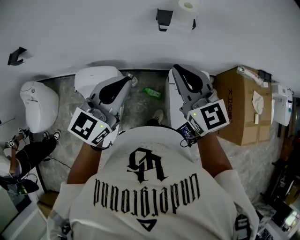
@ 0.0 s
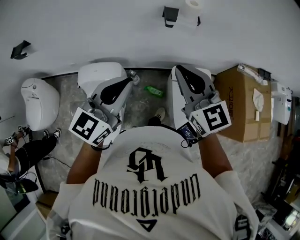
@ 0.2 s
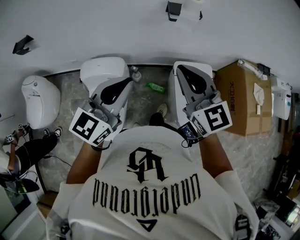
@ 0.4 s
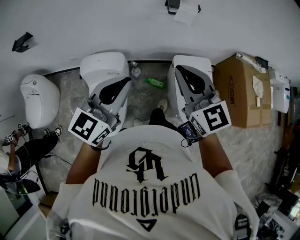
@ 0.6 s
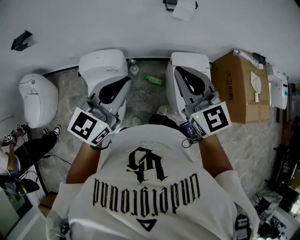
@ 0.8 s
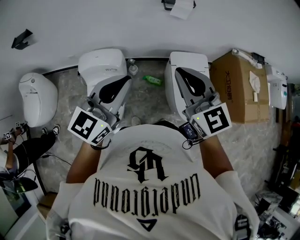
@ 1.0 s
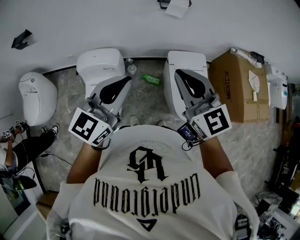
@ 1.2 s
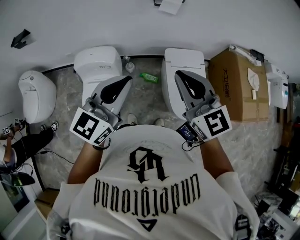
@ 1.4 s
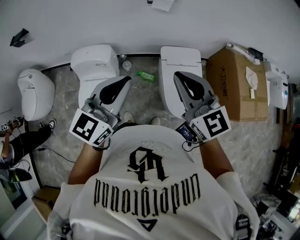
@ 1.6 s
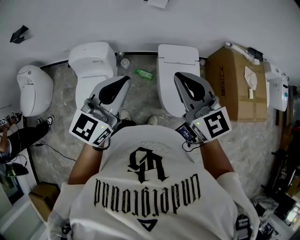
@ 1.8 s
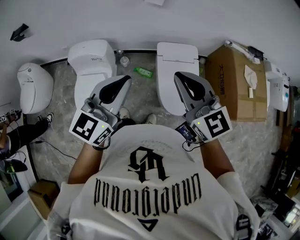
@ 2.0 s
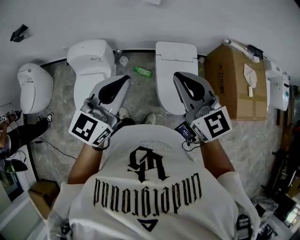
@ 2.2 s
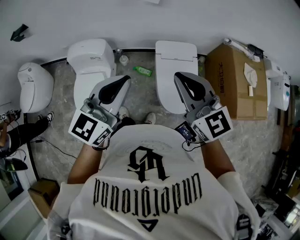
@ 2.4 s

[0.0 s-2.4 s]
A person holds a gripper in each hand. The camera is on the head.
0.0 to 1.2 s: Both grippers move backward, some 20 cm.
1.2 to 2.4 s: The grippers both shift to the right and backward by roughly 15 cm.

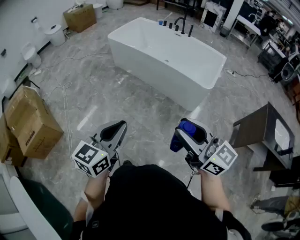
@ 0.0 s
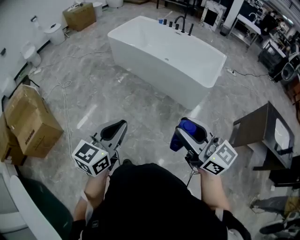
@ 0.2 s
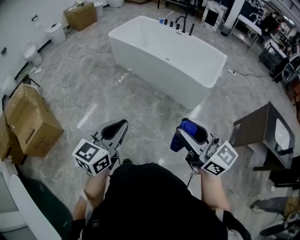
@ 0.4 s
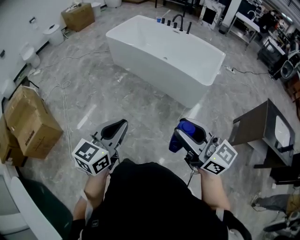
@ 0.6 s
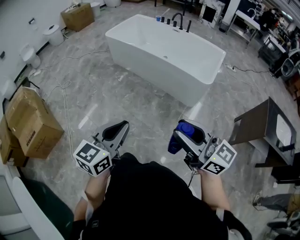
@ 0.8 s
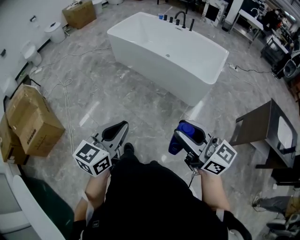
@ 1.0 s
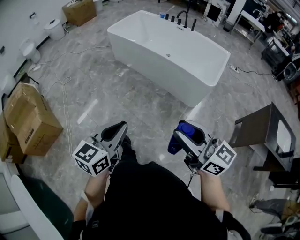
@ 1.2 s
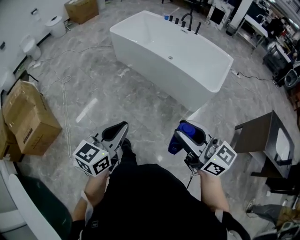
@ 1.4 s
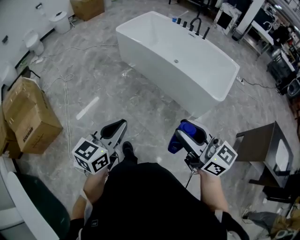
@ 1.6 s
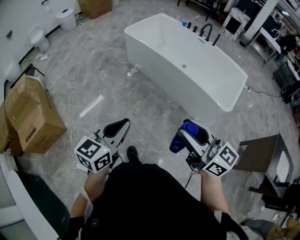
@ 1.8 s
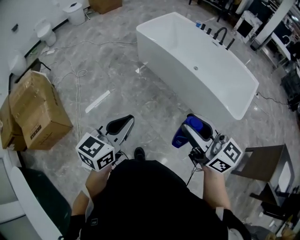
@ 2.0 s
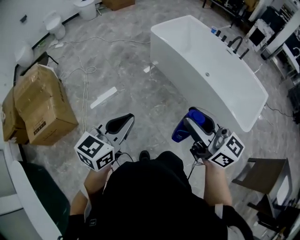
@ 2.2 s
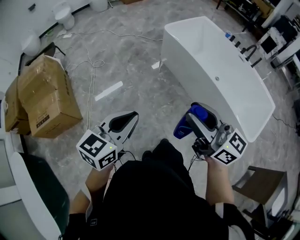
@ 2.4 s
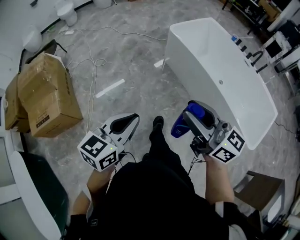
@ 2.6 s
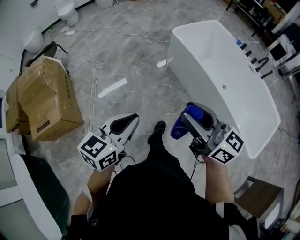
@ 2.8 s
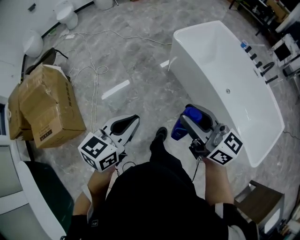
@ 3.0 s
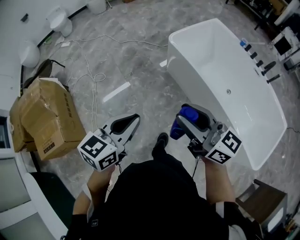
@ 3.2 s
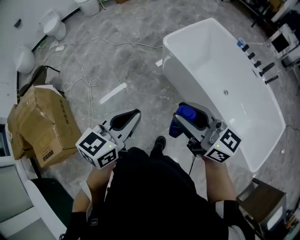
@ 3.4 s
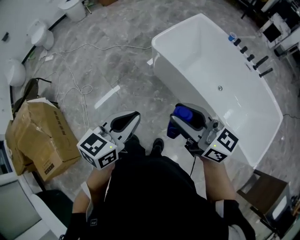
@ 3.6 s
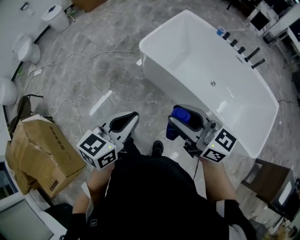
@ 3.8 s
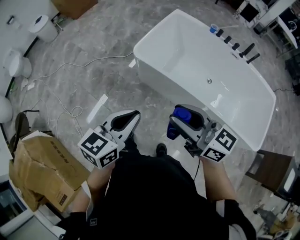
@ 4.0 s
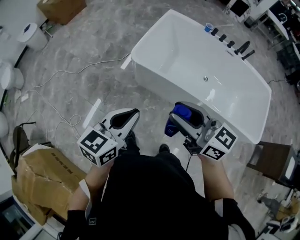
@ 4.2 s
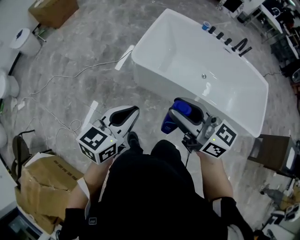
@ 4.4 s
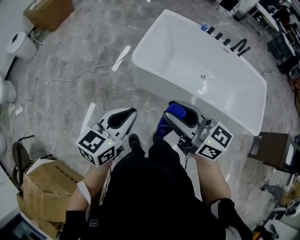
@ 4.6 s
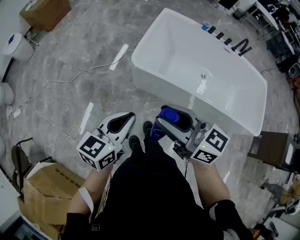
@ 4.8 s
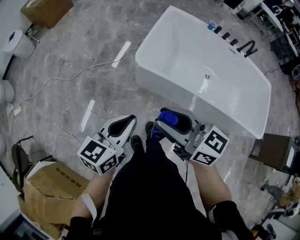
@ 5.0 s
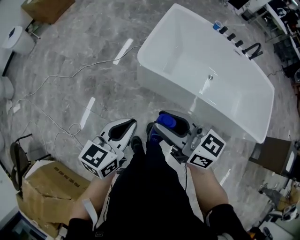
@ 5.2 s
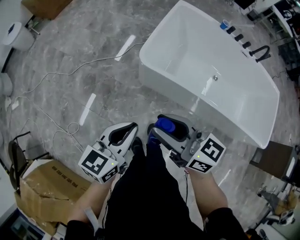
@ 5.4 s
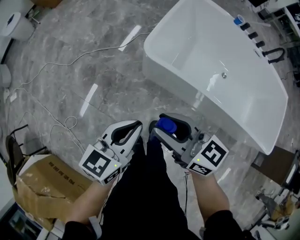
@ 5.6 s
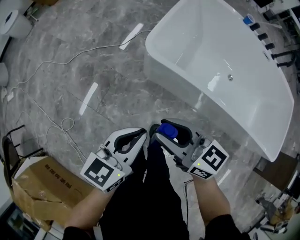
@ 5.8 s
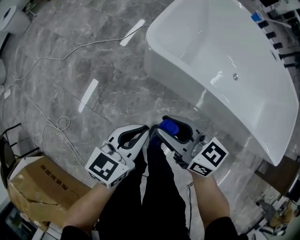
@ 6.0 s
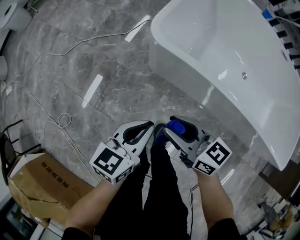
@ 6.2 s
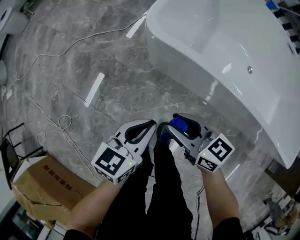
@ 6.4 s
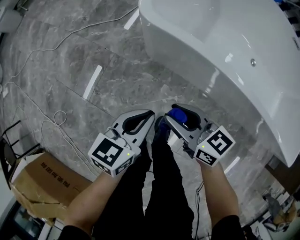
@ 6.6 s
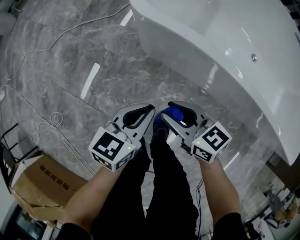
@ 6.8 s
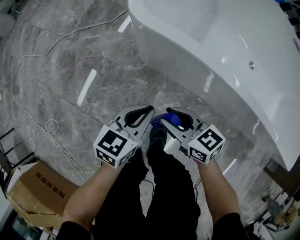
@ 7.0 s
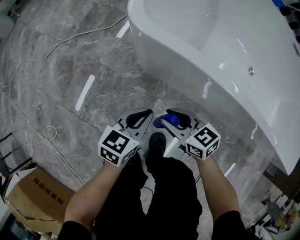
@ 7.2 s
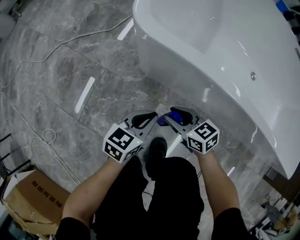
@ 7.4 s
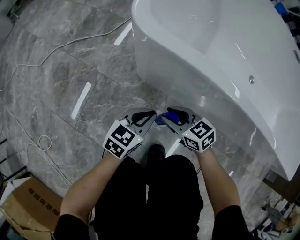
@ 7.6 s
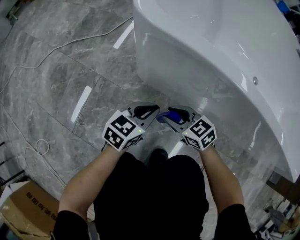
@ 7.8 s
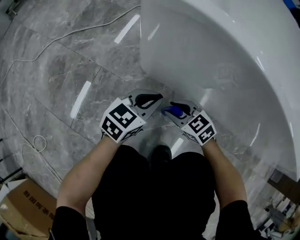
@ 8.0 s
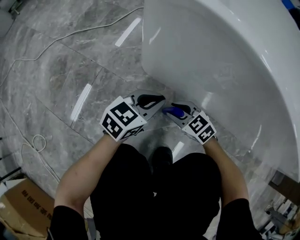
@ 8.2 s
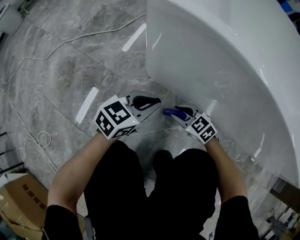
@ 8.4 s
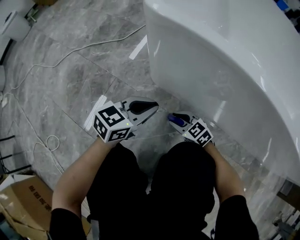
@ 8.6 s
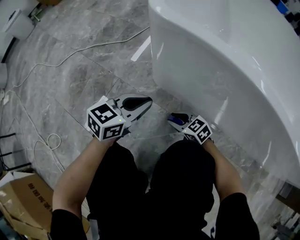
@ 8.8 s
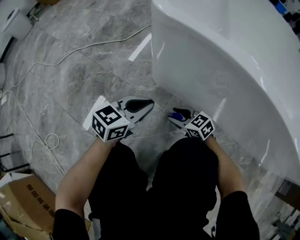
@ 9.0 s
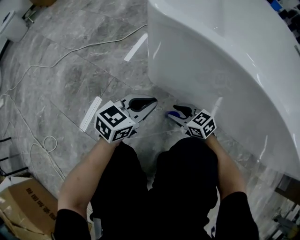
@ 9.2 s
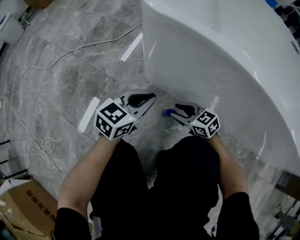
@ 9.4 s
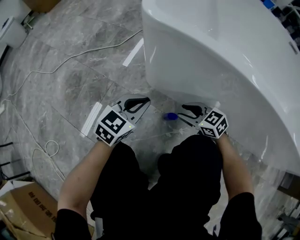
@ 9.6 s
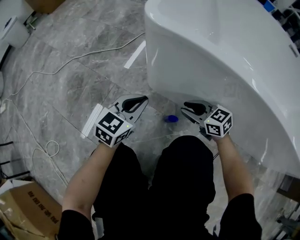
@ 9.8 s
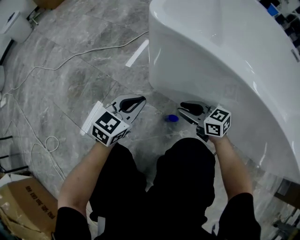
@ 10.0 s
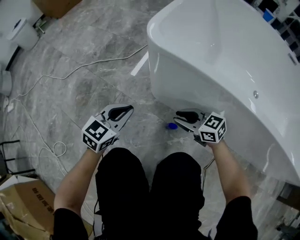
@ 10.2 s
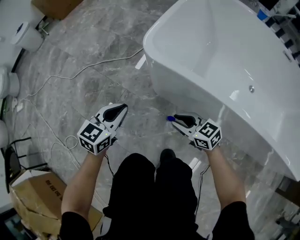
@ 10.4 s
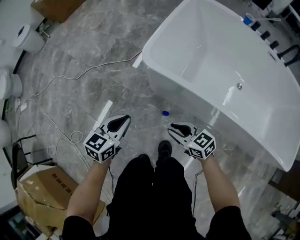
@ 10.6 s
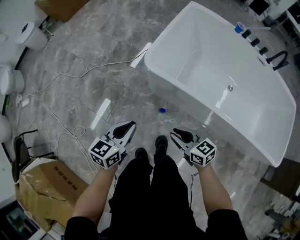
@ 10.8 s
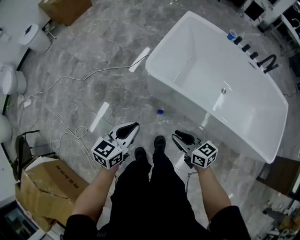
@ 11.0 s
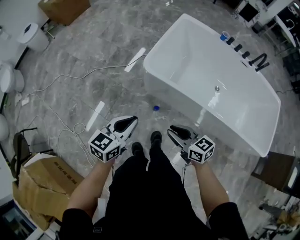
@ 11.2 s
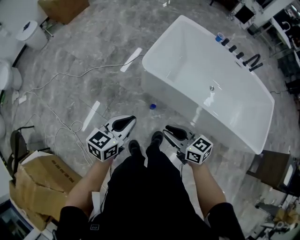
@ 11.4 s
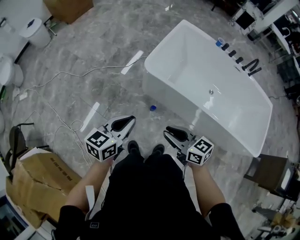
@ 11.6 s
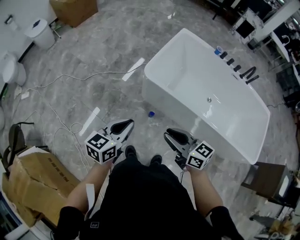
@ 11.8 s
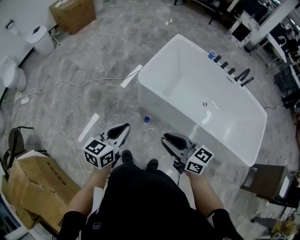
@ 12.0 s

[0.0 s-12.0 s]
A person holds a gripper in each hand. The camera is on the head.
0.0 to 1.6 s: Both grippers move forward, about 15 cm.
1.6 to 3.0 s: Both grippers are carried forward, roughly 50 cm.
3.0 to 4.4 s: The right gripper changes place by some 40 cm, and swivels approximately 30 degrees. The left gripper changes place by some 50 cm, and turns by approximately 30 degrees.
4.4 to 6.0 s: The two grippers go roughly 40 cm downward.
6.0 to 7.6 s: The two grippers go roughly 40 cm downward. The right gripper turns by some 30 degrees.
7.6 to 9.0 s: The right gripper moves downward, roughly 10 cm. Meanwhile the left gripper goes downward and returns, approximately 5 cm each way.
9.0 to 10.4 s: The grippers both shift upward by about 20 cm. The left gripper swivels approximately 20 degrees.
10.4 to 12.0 s: Both grippers move upward and backward, approximately 60 cm.

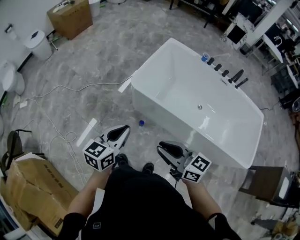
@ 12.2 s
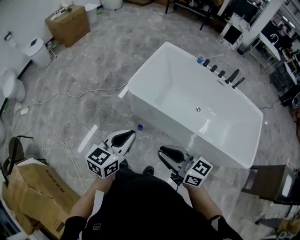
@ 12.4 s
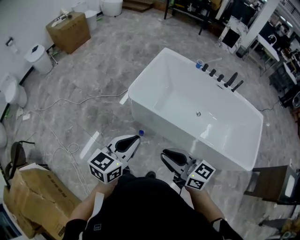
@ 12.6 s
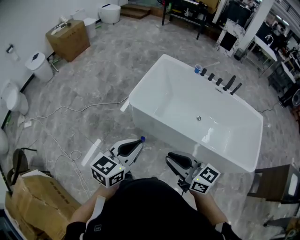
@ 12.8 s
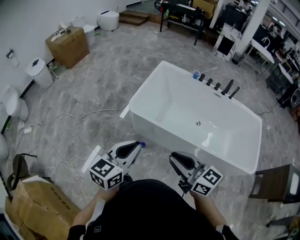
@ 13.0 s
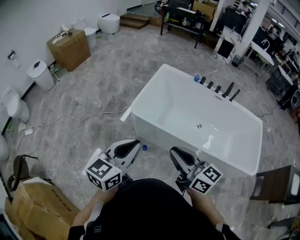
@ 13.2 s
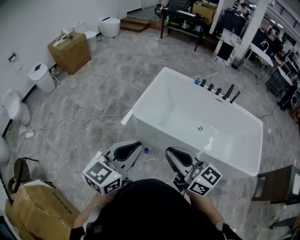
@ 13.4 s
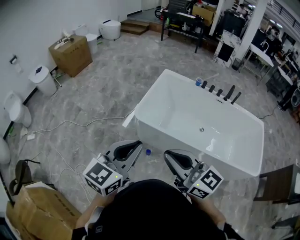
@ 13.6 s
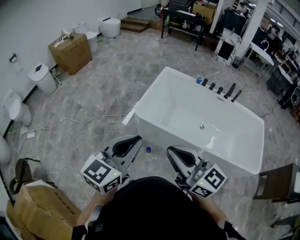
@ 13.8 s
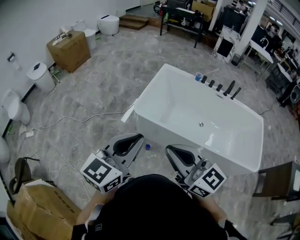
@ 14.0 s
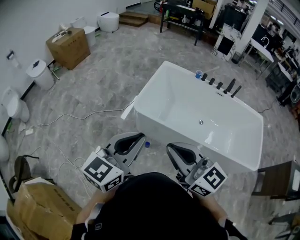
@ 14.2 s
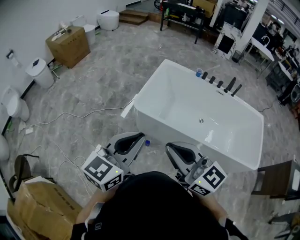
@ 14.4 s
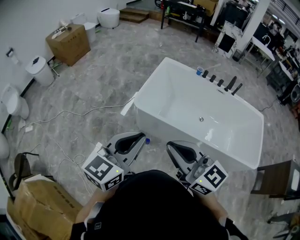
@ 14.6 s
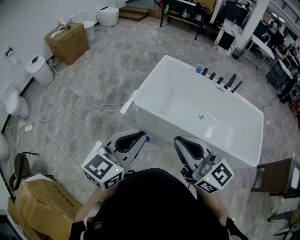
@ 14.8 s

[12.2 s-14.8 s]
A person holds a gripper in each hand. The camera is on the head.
12.2 to 13.4 s: Both grippers move upward, about 15 cm.
13.4 to 14.8 s: The grippers stay close to where they were, moving slightly.

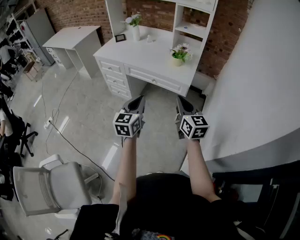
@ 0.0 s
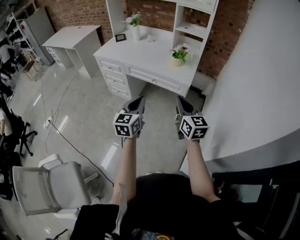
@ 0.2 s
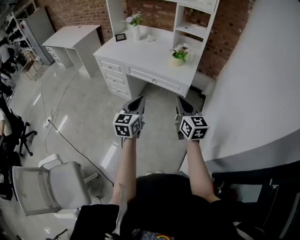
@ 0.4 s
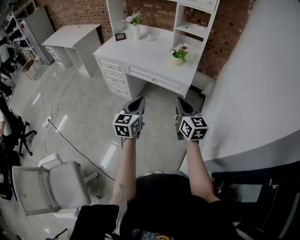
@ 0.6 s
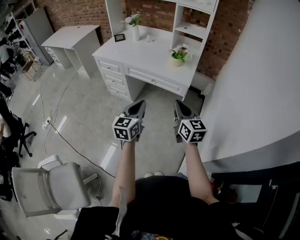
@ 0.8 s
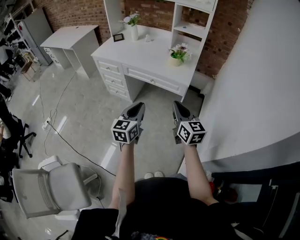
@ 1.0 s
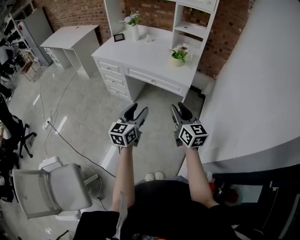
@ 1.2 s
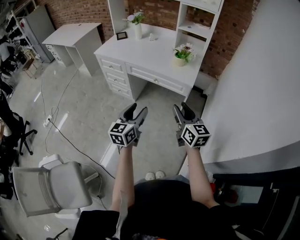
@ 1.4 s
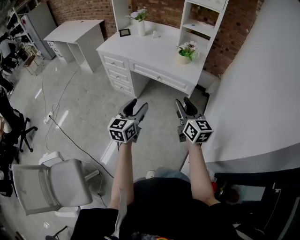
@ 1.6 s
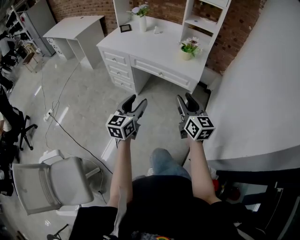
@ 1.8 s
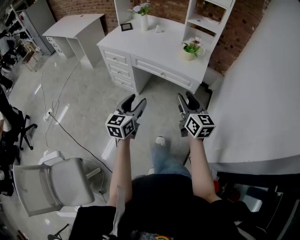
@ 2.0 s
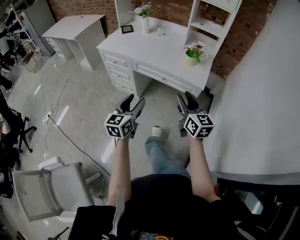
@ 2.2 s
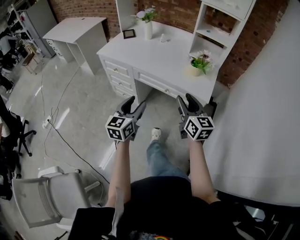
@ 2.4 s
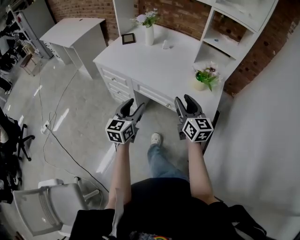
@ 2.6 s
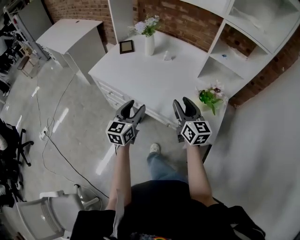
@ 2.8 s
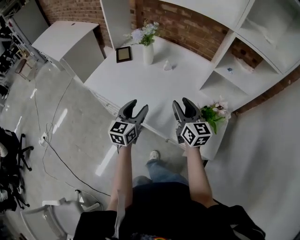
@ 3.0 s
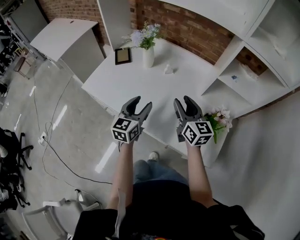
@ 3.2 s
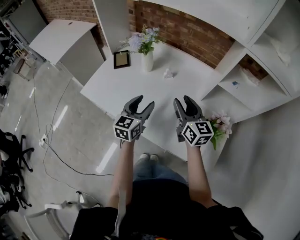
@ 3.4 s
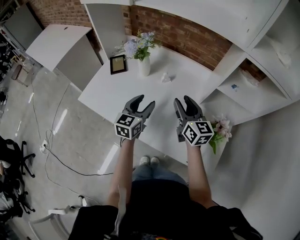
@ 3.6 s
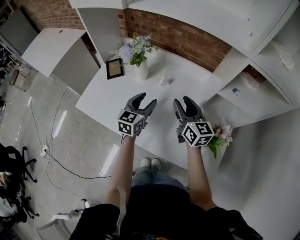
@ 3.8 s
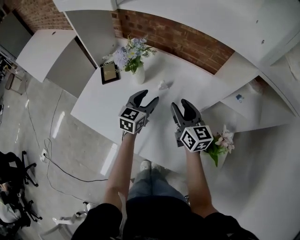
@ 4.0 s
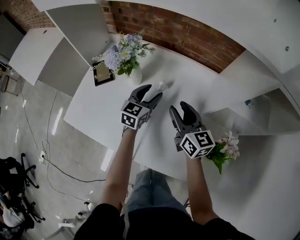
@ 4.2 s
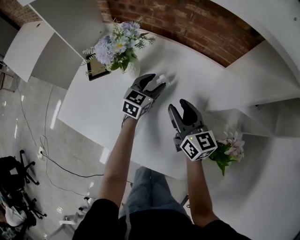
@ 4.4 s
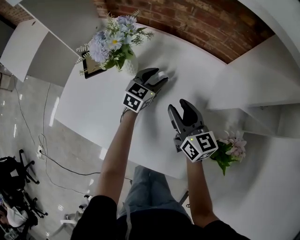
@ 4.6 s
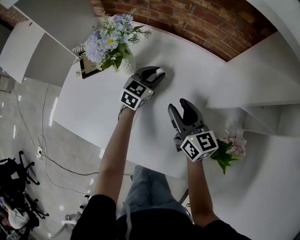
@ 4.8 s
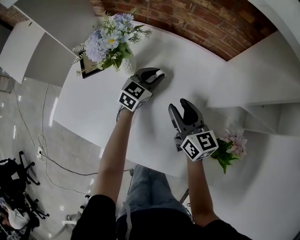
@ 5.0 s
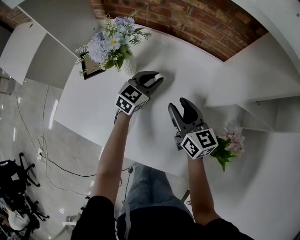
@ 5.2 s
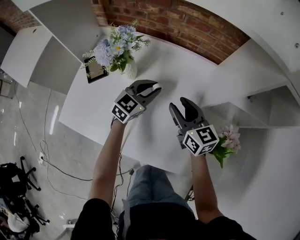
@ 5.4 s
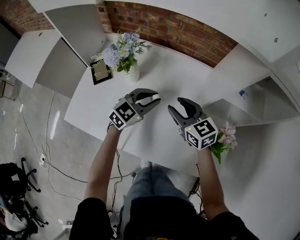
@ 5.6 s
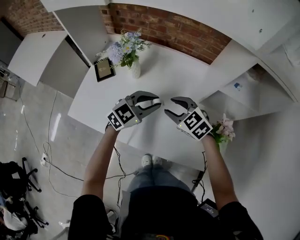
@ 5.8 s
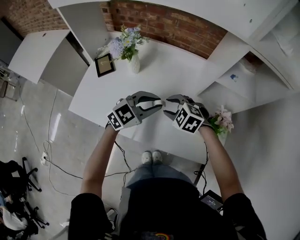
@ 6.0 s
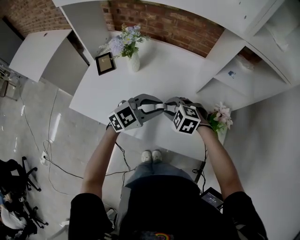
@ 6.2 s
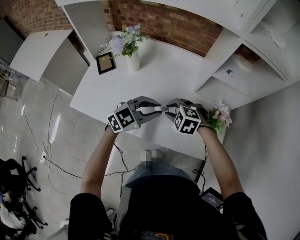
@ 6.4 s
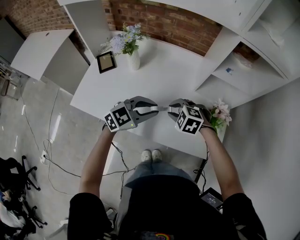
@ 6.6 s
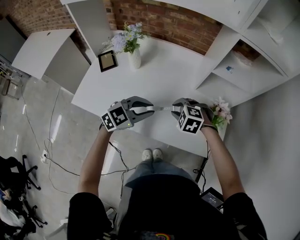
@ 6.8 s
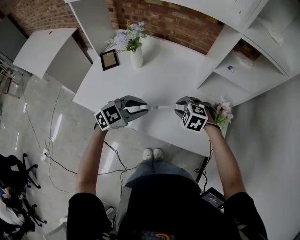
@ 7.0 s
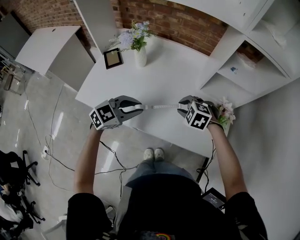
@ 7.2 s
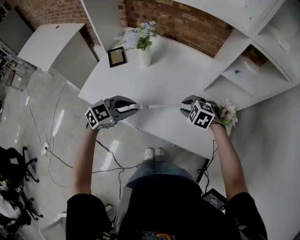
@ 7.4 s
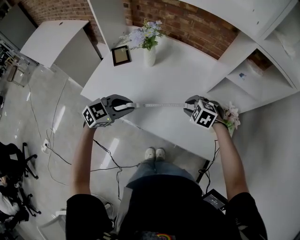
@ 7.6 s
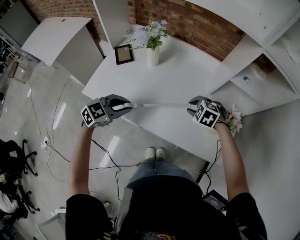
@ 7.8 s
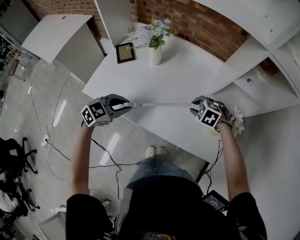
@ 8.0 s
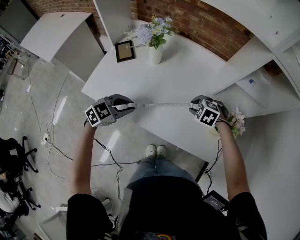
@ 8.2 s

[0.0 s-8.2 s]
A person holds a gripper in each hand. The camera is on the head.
0.0 to 1.6 s: The left gripper shifts by some 5 cm, and opens its fingers. Meanwhile the right gripper opens.
1.6 to 3.2 s: The two grippers travel together, forward, approximately 60 cm.
3.2 to 5.0 s: The left gripper is displaced forward and downward by roughly 35 cm, swivels roughly 30 degrees, and closes its fingers. Meanwhile the right gripper heads forward and downward, covering some 20 cm.
5.0 to 6.6 s: The right gripper goes roughly 15 cm backward, and points its fingers some 50 degrees further downward, while the left gripper goes approximately 30 cm backward and upward, and rotates approximately 30 degrees.
6.6 to 8.2 s: The left gripper heads to the left, covering about 20 cm; the right gripper moves approximately 5 cm.
